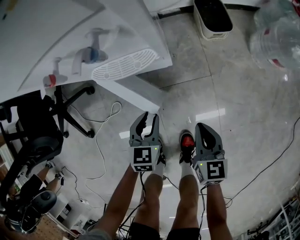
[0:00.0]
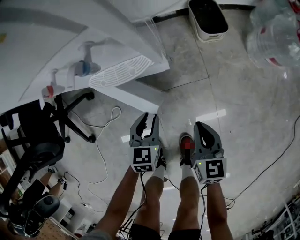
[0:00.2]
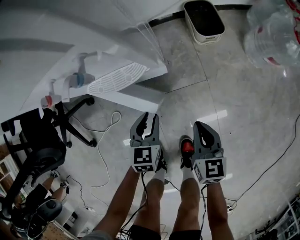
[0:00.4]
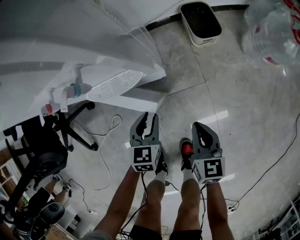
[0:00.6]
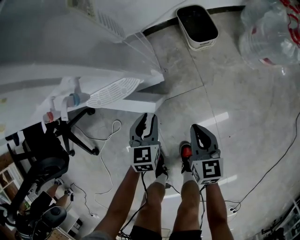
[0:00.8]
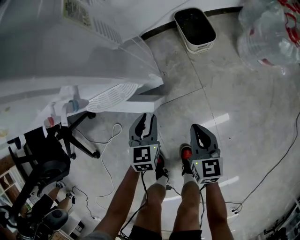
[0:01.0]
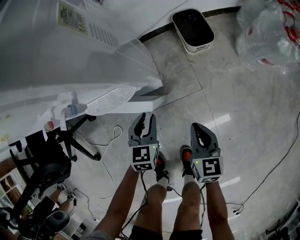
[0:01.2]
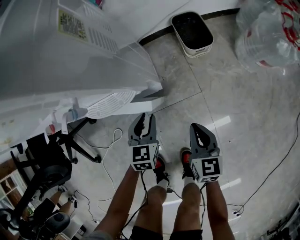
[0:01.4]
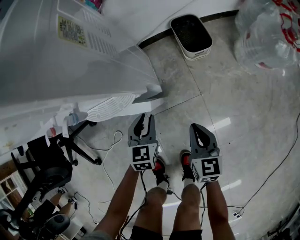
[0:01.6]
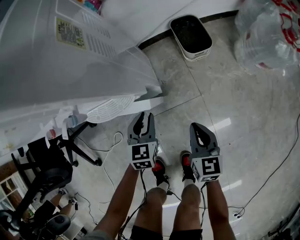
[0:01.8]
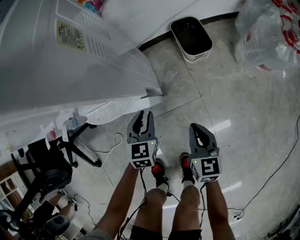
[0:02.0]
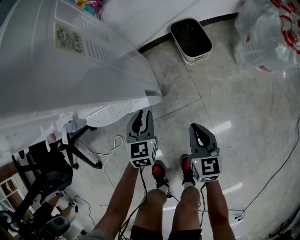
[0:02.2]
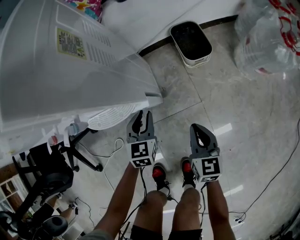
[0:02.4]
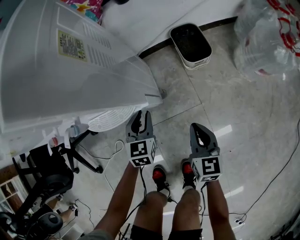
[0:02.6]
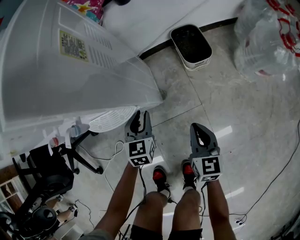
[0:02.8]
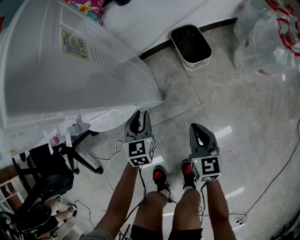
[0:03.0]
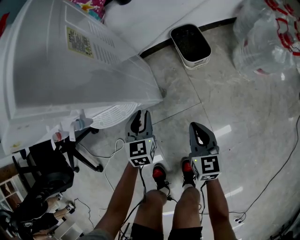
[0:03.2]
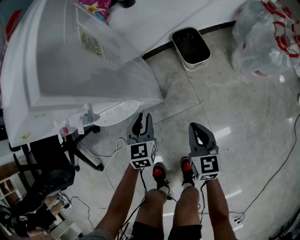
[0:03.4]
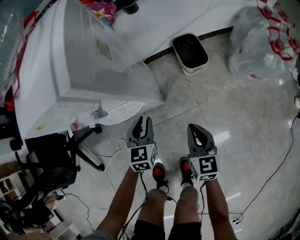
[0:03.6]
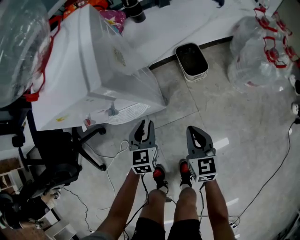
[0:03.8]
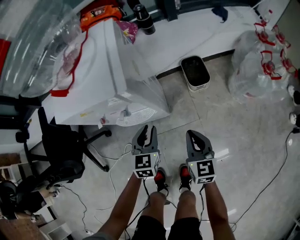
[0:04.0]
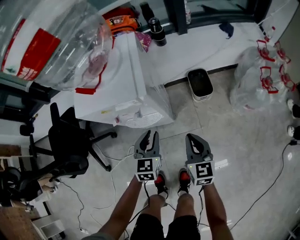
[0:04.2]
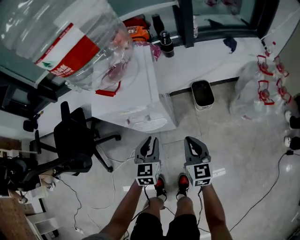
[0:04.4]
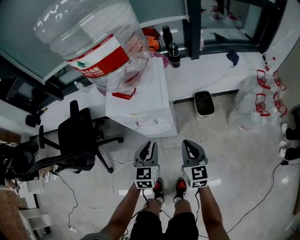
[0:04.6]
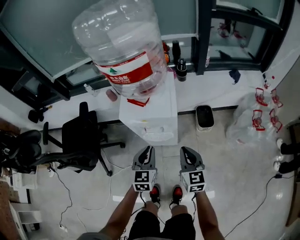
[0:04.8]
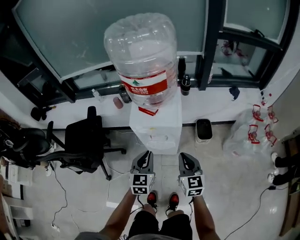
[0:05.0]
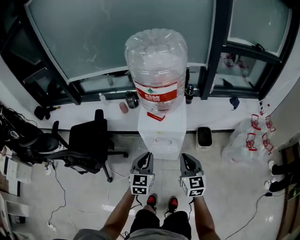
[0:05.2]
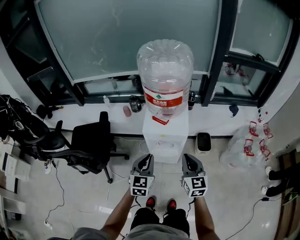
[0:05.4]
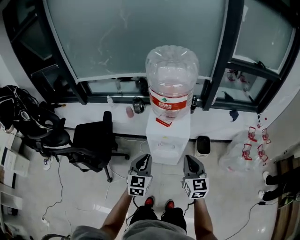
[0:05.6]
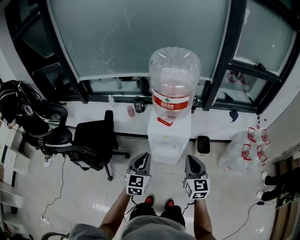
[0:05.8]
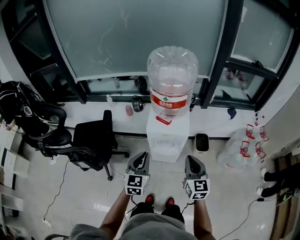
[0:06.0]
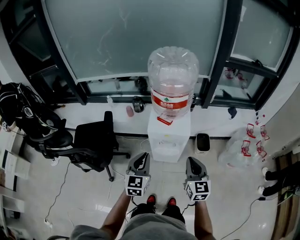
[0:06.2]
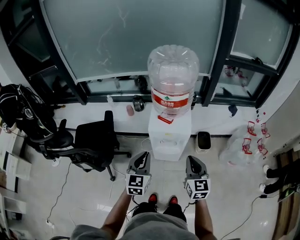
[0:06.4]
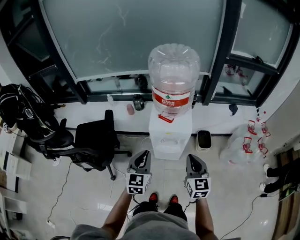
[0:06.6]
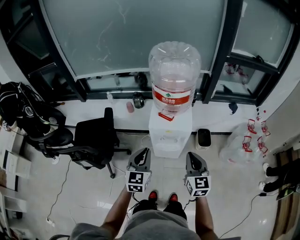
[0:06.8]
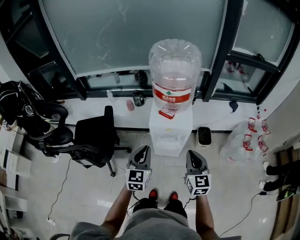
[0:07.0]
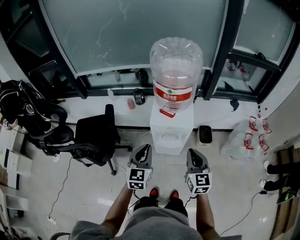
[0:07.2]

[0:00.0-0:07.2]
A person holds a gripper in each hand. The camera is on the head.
0:00.0 to 0:01.4: The left gripper goes approximately 10 cm forward and to the right. The right gripper goes approximately 5 cm forward.
0:01.4 to 0:02.8: The left gripper goes about 5 cm forward.
0:02.8 to 0:04.4: The grippers both shift upward by about 30 cm.
0:04.4 to 0:05.8: The left gripper travels upward and to the left by approximately 35 cm, while the right gripper is displaced upward by roughly 35 cm.
0:05.8 to 0:07.2: The grippers move only a little.

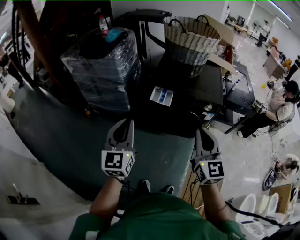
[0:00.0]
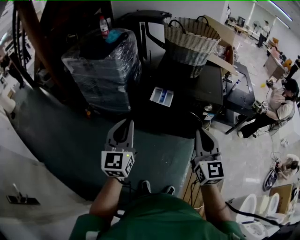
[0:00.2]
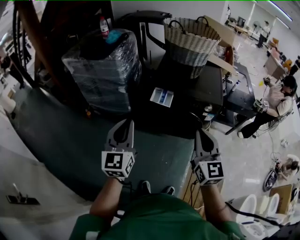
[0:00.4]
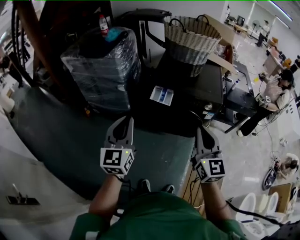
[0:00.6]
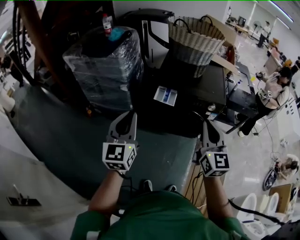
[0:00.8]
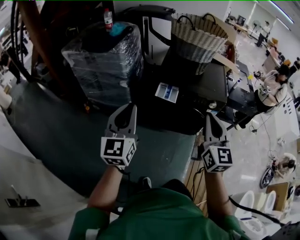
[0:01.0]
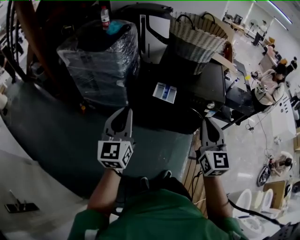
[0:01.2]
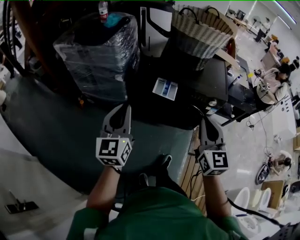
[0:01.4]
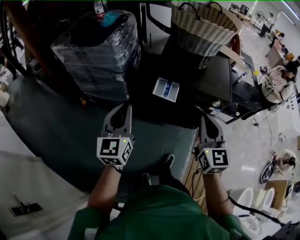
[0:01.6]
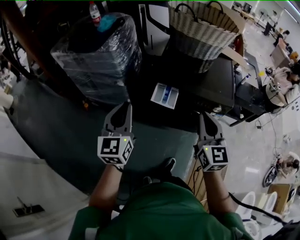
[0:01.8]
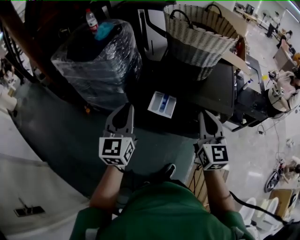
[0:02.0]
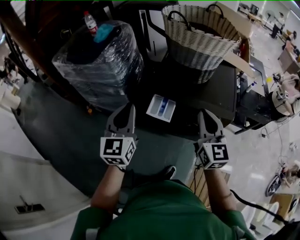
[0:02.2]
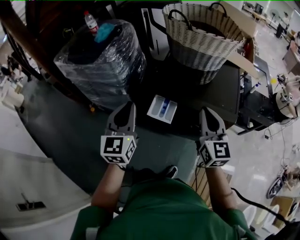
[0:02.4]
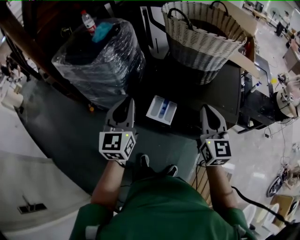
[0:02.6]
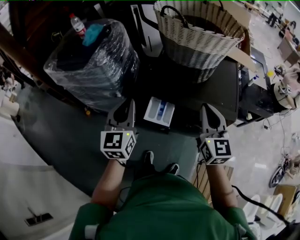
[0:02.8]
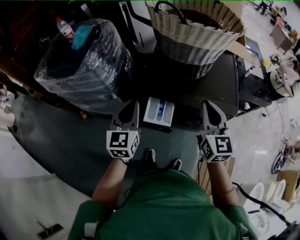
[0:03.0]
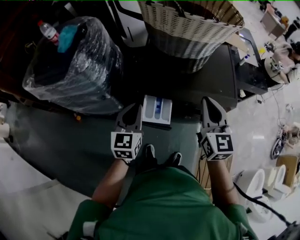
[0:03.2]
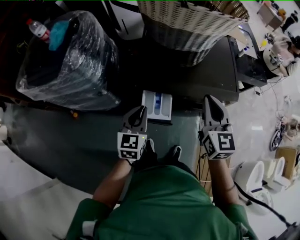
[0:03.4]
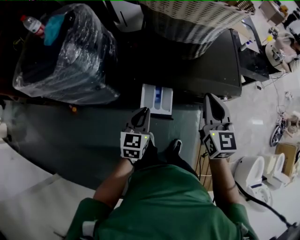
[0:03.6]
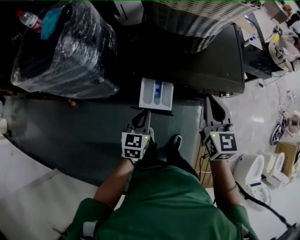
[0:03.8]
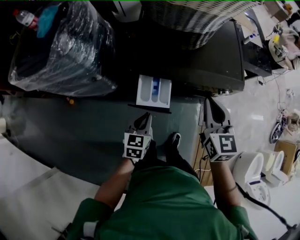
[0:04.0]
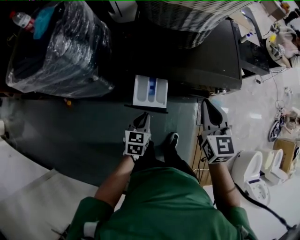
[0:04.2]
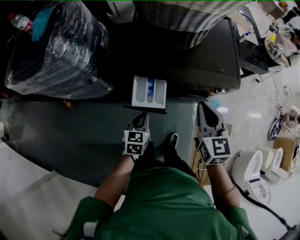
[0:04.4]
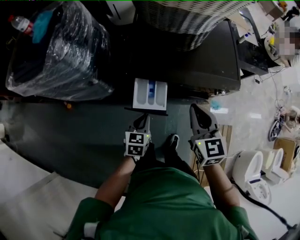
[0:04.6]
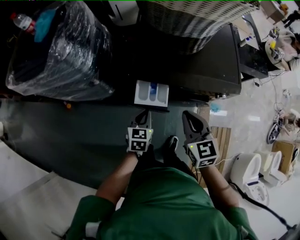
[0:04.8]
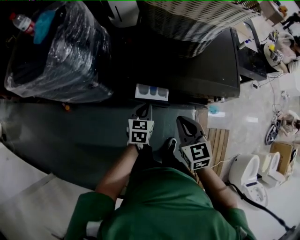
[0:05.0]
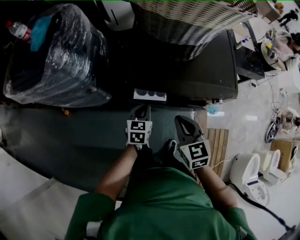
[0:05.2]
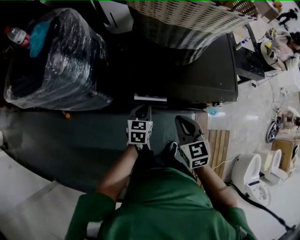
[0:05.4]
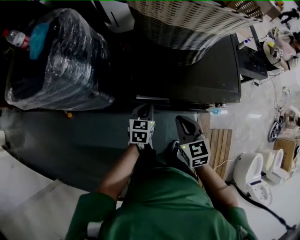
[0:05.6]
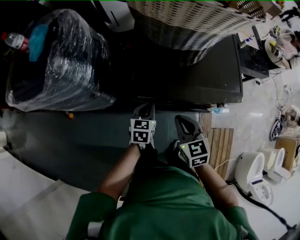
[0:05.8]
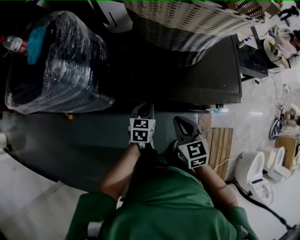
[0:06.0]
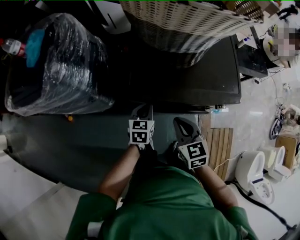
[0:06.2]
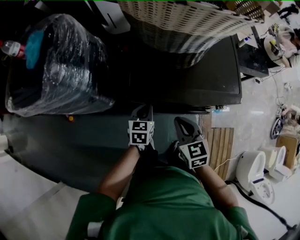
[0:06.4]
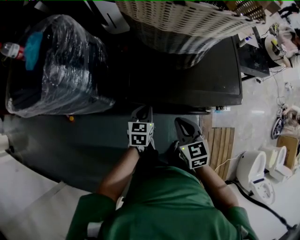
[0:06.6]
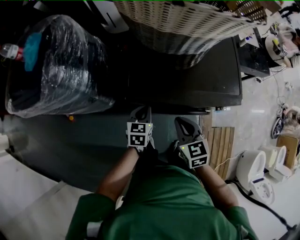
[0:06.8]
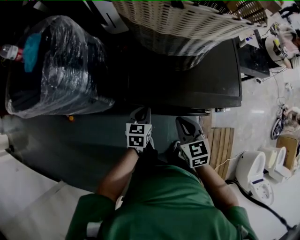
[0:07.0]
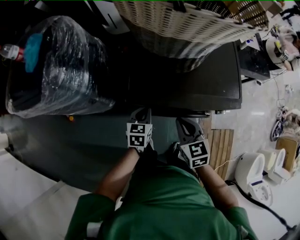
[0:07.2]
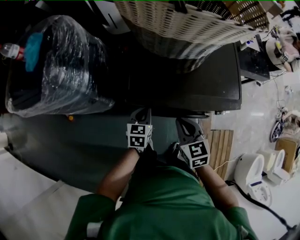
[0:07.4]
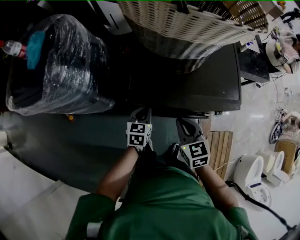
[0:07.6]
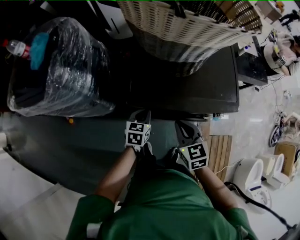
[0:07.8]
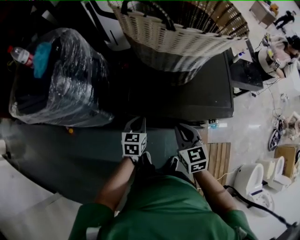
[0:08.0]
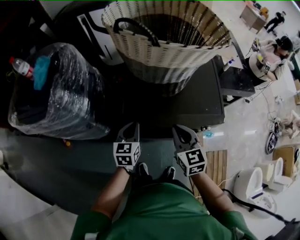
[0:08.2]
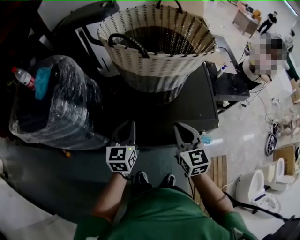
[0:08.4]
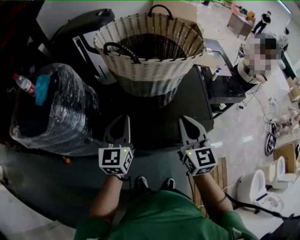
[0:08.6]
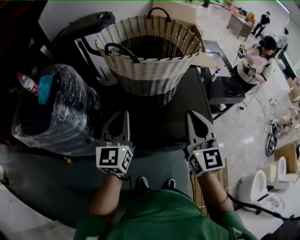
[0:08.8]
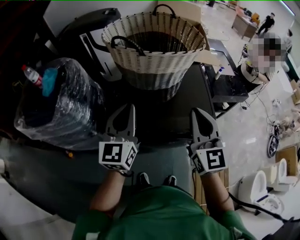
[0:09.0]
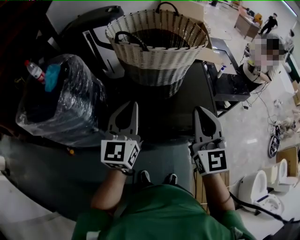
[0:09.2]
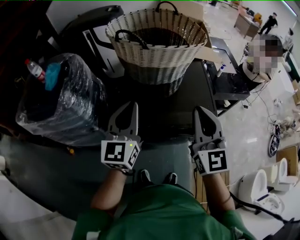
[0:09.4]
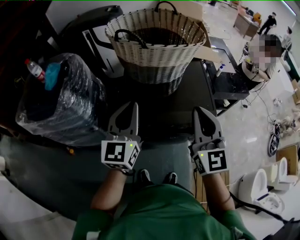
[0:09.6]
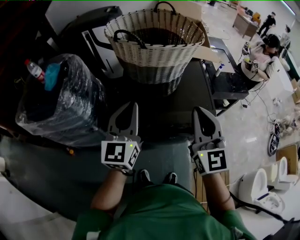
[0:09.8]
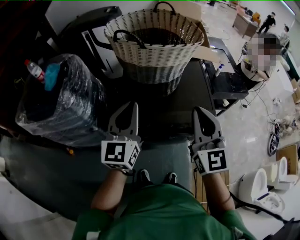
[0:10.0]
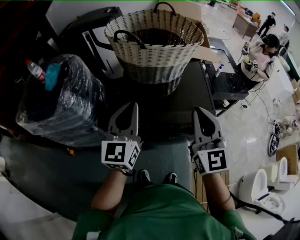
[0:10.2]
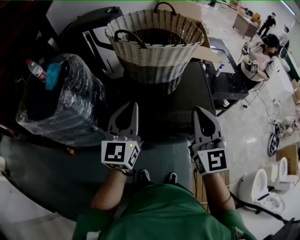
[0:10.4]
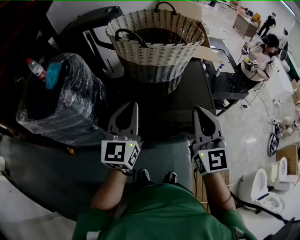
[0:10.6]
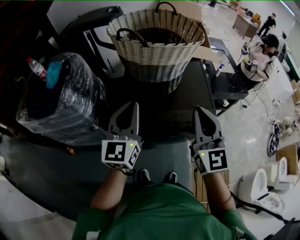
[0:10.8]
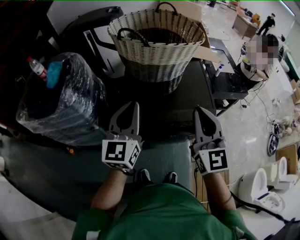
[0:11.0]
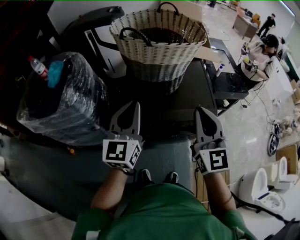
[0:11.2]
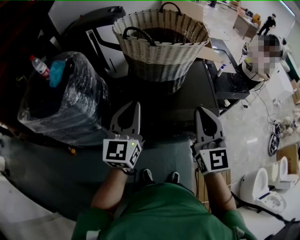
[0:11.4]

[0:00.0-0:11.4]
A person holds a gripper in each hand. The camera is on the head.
0:00.0 to 0:01.4: The left gripper moves forward and to the left, some 10 cm. Meanwhile the right gripper shifts some 5 cm forward.
0:01.4 to 0:02.8: Both grippers move forward and to the right, approximately 30 cm.
0:02.8 to 0:04.2: The right gripper travels downward by about 15 cm, and changes its angle by approximately 20 degrees, while the left gripper moves downward, roughly 30 cm, and tips its fingers downward by some 30 degrees.
0:04.2 to 0:05.6: The left gripper moves forward, about 15 cm; the right gripper goes about 10 cm to the left and downward.
0:05.6 to 0:07.2: The grippers move only a little.
0:07.2 to 0:08.6: Both grippers travel together upward, some 25 cm. The left gripper angles its fingers upward, by about 30 degrees. Meanwhile the right gripper swivels approximately 30 degrees.
0:08.6 to 0:10.0: The left gripper shifts roughly 10 cm upward and backward; the right gripper heads backward and upward, covering roughly 10 cm.
0:10.0 to 0:11.4: The grippers move only a little.

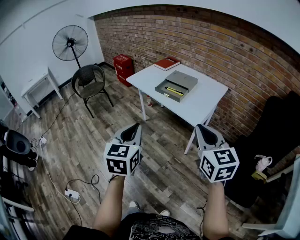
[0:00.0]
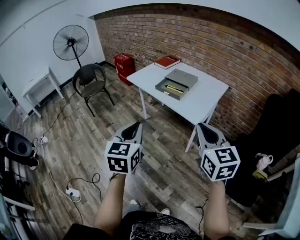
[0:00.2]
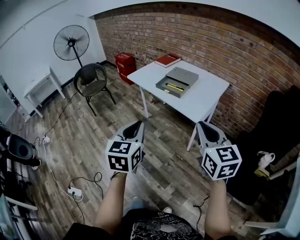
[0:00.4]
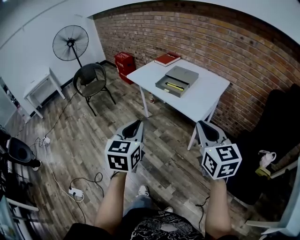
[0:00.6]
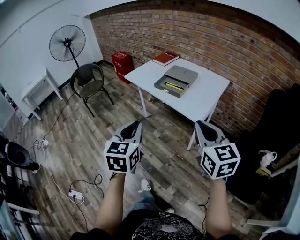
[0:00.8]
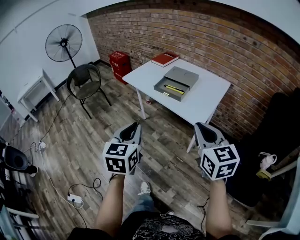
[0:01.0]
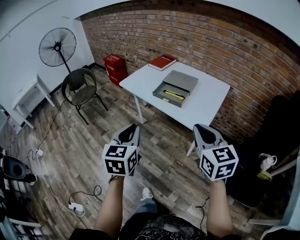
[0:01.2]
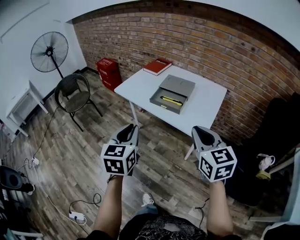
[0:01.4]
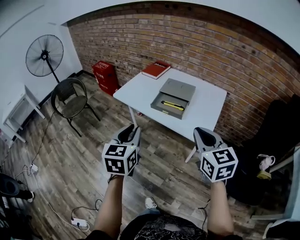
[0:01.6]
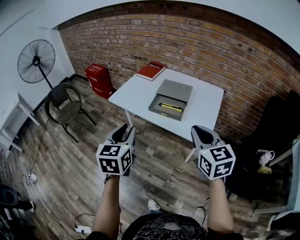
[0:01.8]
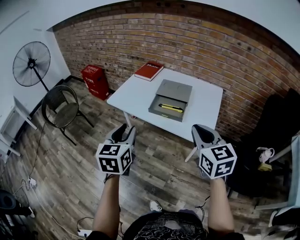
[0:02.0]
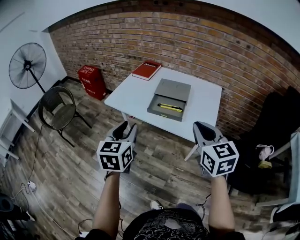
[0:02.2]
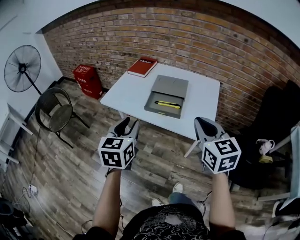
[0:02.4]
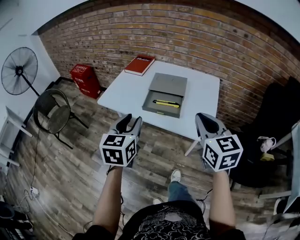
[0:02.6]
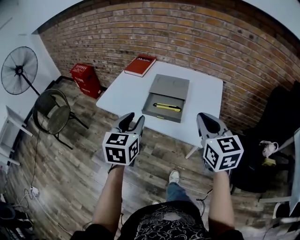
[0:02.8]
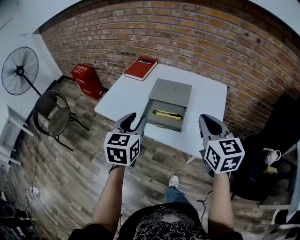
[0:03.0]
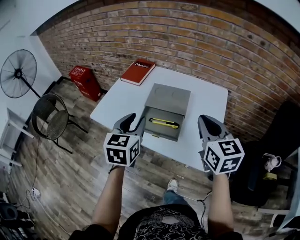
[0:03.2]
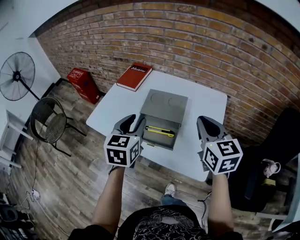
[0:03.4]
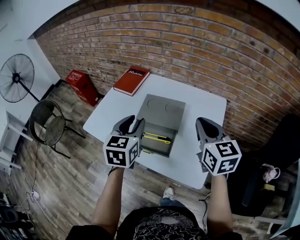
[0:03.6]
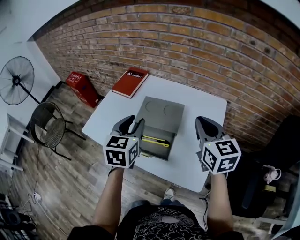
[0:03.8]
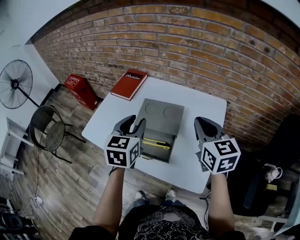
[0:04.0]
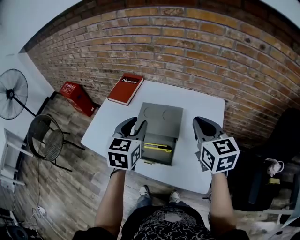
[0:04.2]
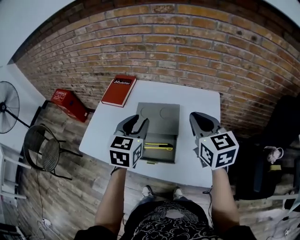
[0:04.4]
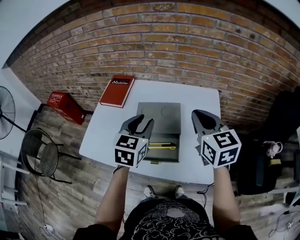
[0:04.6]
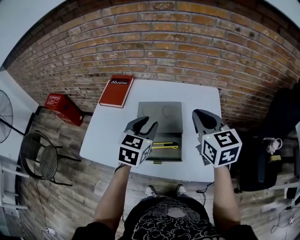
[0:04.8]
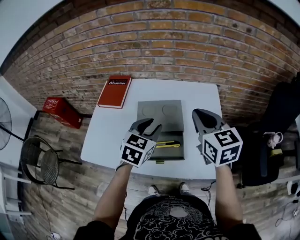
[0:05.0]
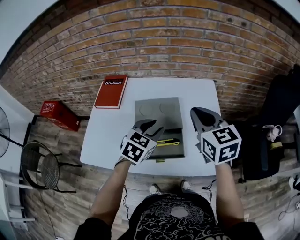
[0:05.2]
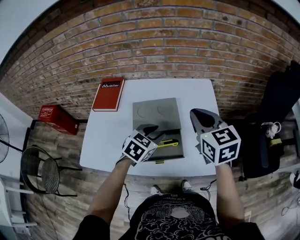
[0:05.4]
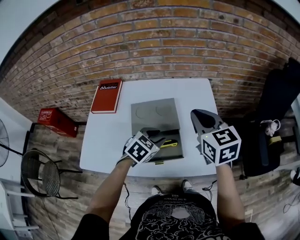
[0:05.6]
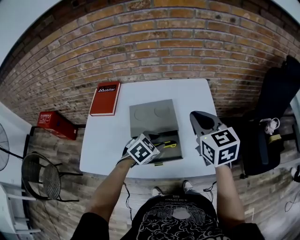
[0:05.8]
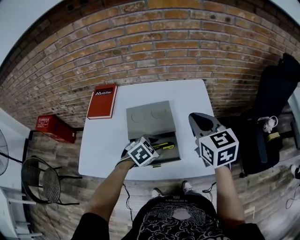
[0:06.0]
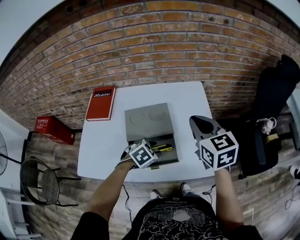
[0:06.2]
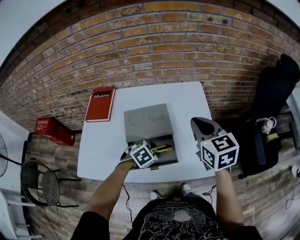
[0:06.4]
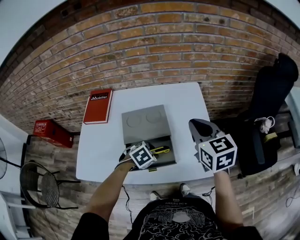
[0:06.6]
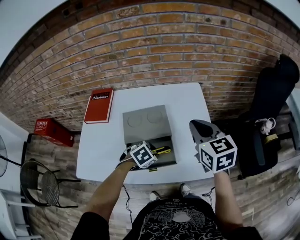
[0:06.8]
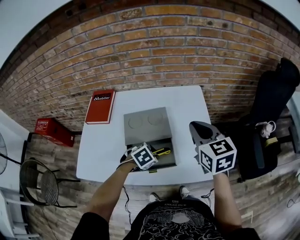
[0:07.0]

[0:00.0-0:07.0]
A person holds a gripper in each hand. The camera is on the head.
0:00.0 to 0:01.4: The two grippers go approximately 15 cm forward.
0:01.4 to 0:02.8: The grippers both shift forward by approximately 20 cm. The left gripper opens its fingers.
0:02.8 to 0:04.2: Both grippers move forward, about 25 cm.
0:04.2 to 0:05.6: The left gripper heads downward, covering roughly 15 cm, and swivels some 50 degrees.
0:05.6 to 0:07.0: The left gripper goes about 10 cm downward, and swivels about 20 degrees.
